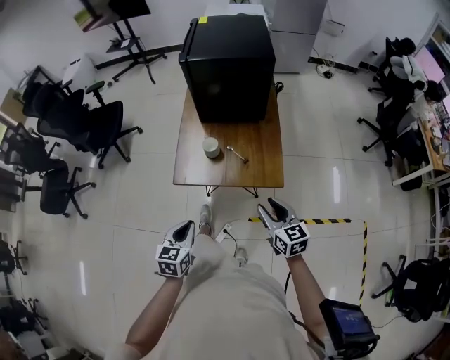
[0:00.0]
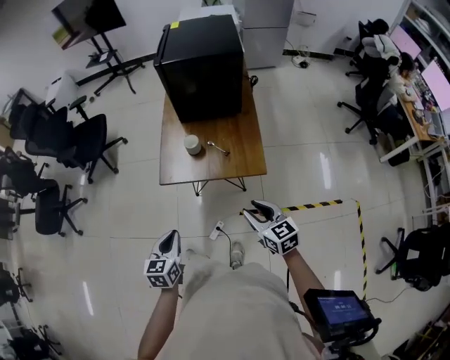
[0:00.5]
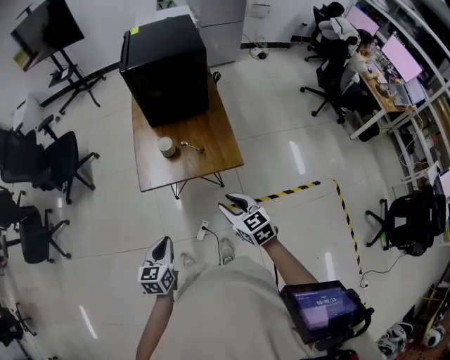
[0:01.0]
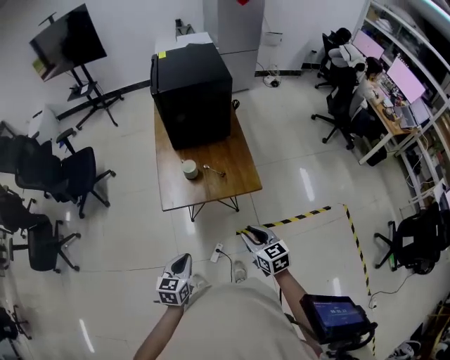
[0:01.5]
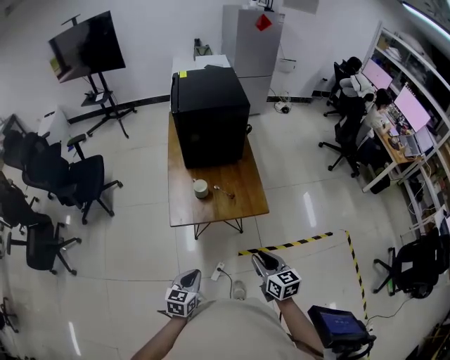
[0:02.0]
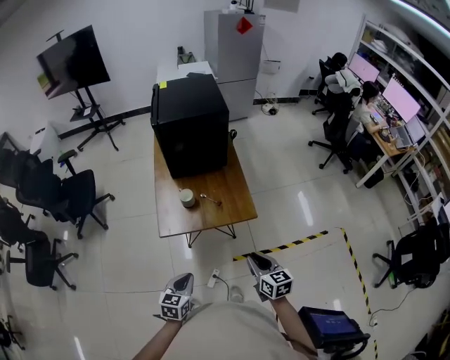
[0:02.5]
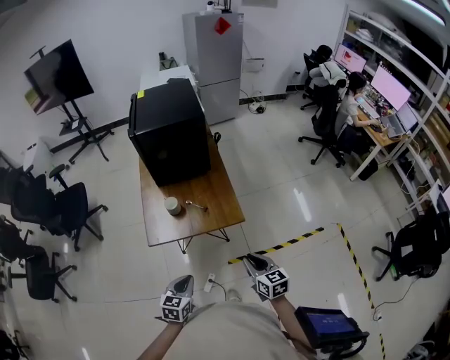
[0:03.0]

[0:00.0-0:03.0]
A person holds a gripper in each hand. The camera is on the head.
0:00.0 to 0:01.5: The left gripper is displaced backward by roughly 10 cm. Meanwhile the right gripper shifts roughly 15 cm backward and to the left.
0:01.5 to 0:03.0: The two grippers go approximately 10 cm to the right.

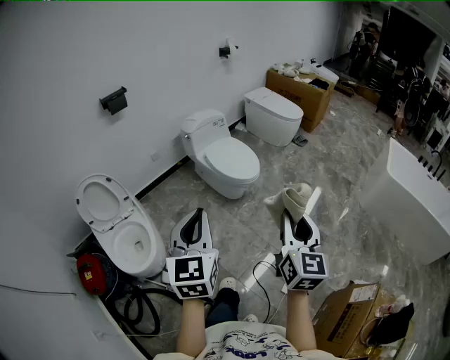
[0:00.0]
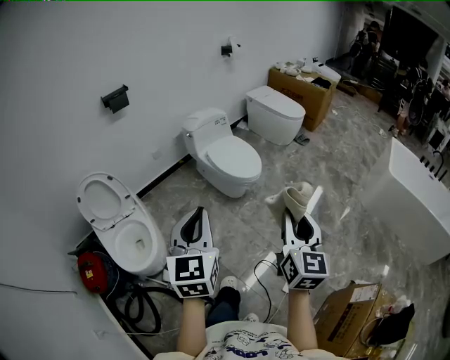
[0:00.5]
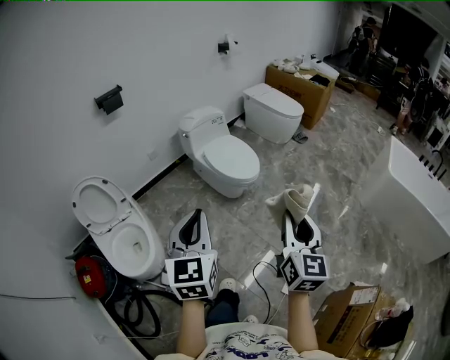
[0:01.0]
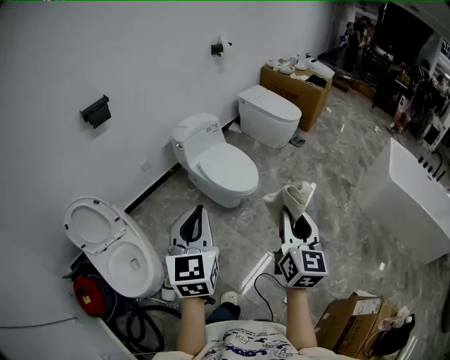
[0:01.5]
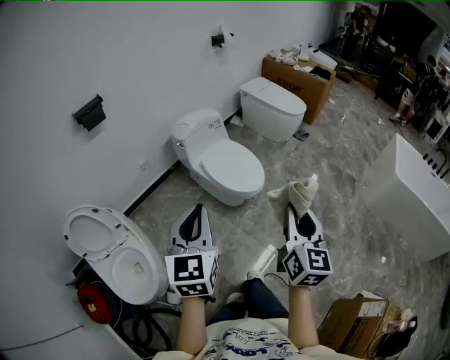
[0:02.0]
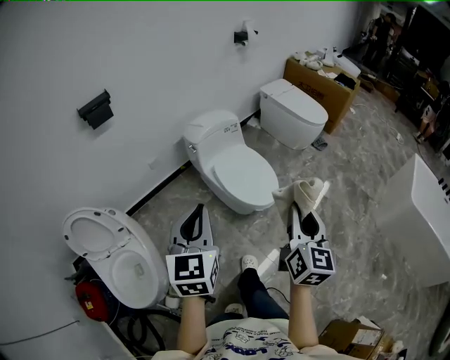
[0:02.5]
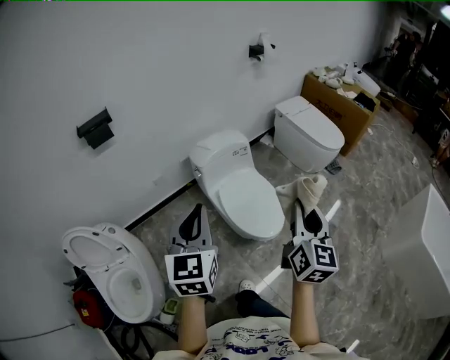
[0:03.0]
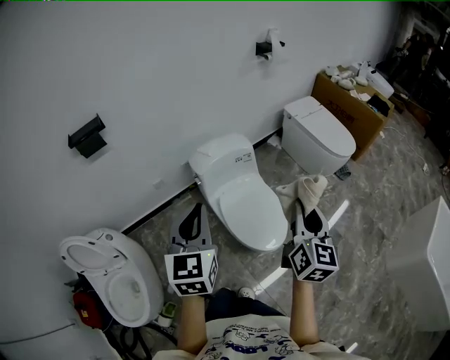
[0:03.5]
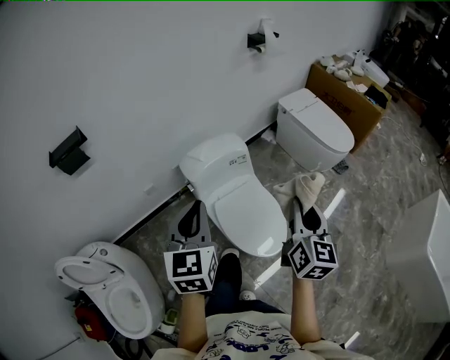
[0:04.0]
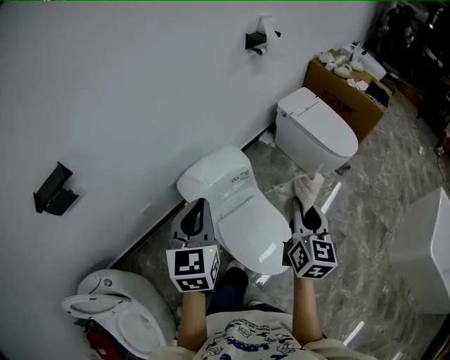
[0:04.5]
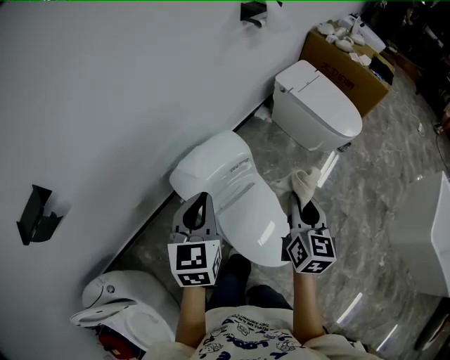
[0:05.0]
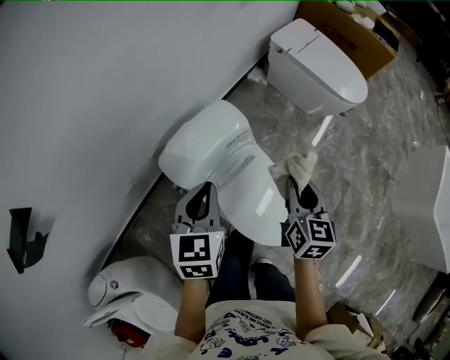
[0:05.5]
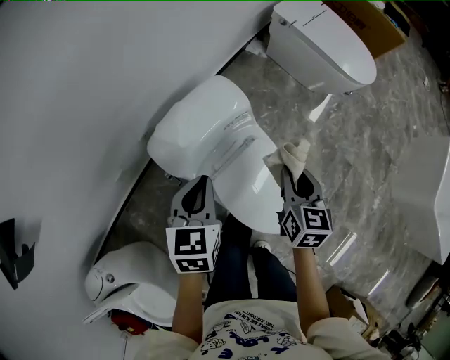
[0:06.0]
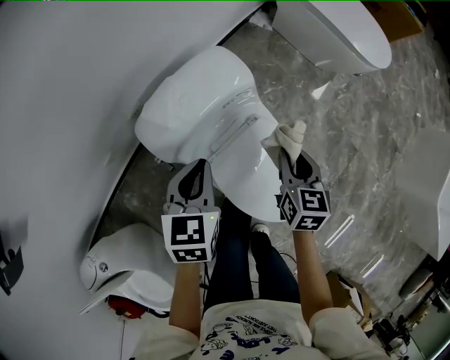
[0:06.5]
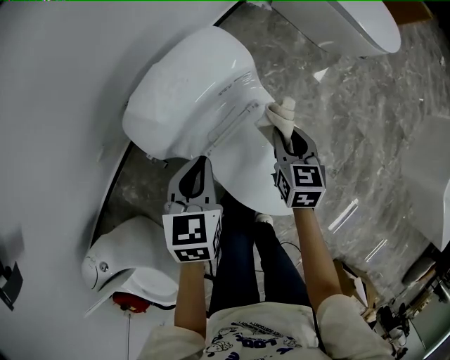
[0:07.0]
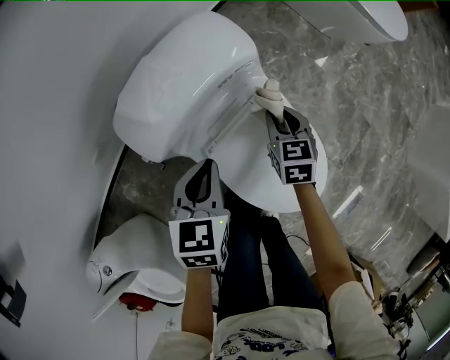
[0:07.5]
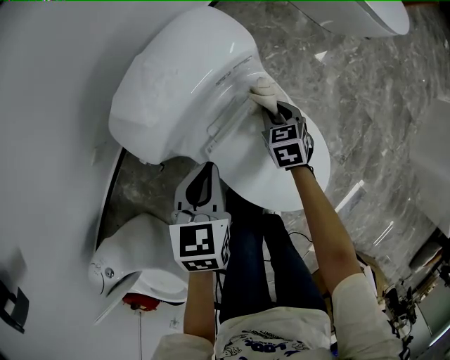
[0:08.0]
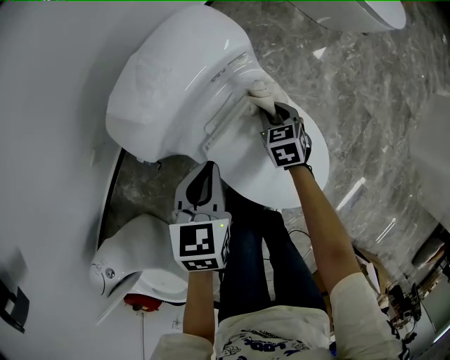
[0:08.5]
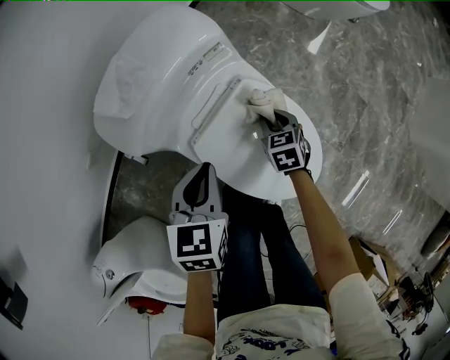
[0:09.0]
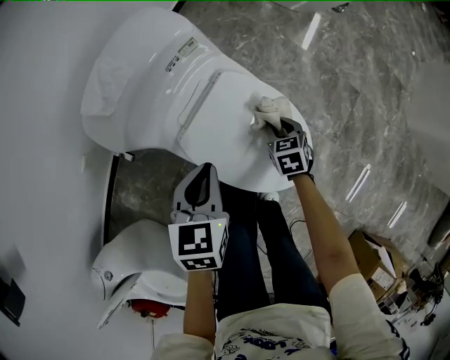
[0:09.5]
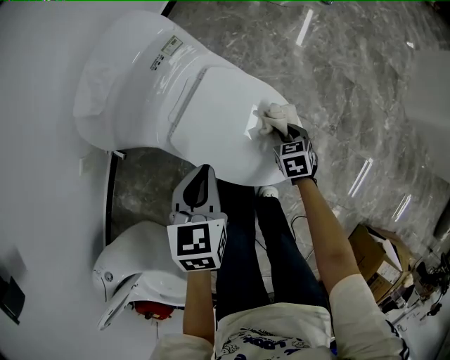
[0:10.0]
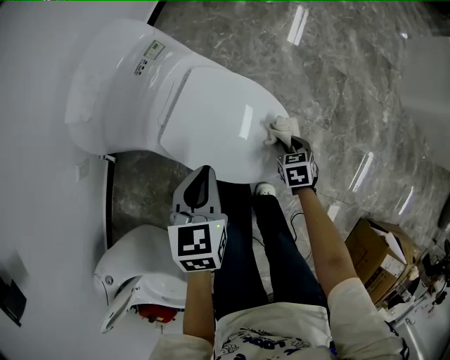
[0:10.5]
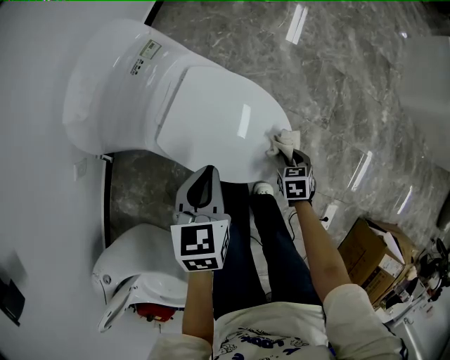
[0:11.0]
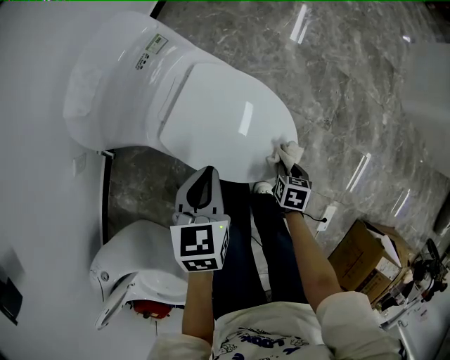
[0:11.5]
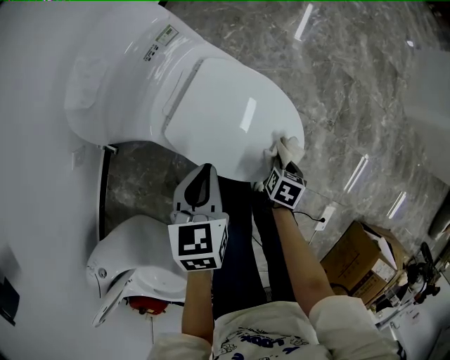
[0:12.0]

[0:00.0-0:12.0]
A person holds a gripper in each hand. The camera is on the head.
0:00.0 to 0:02.0: The two grippers go about 25 cm forward.
0:02.0 to 0:04.0: The two grippers travel together, forward, roughly 60 cm.
0:04.0 to 0:06.0: The right gripper shifts some 40 cm downward and forward, and swivels roughly 30 degrees. Meanwhile the left gripper travels forward and downward by about 40 cm, and changes its angle by approximately 30 degrees.
0:06.0 to 0:08.0: The right gripper shifts roughly 35 cm downward, and changes its angle by approximately 30 degrees, while the left gripper is displaced downward by some 20 cm.
0:08.0 to 0:10.0: The left gripper heads to the right and backward, covering roughly 15 cm. The right gripper travels backward and to the right by roughly 30 cm.
0:10.0 to 0:12.0: The right gripper changes place by some 15 cm, and changes its angle by roughly 40 degrees.

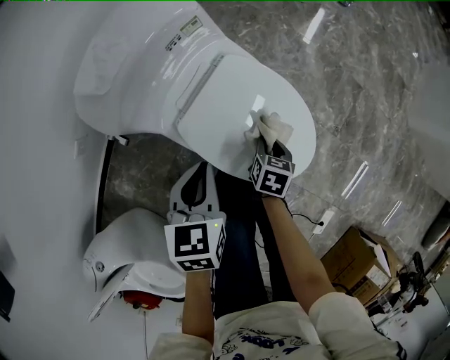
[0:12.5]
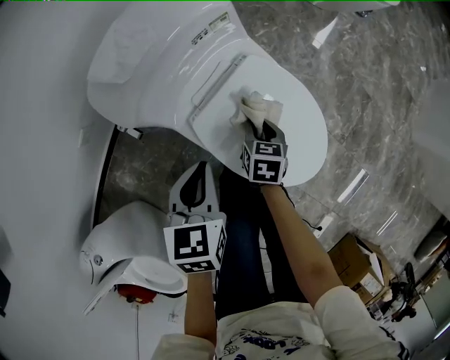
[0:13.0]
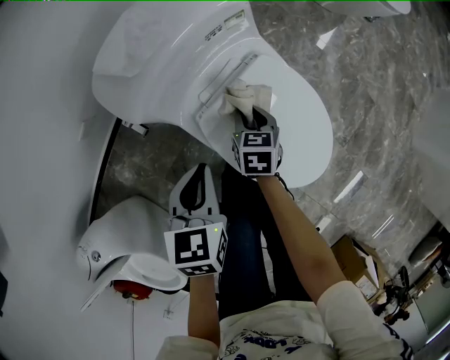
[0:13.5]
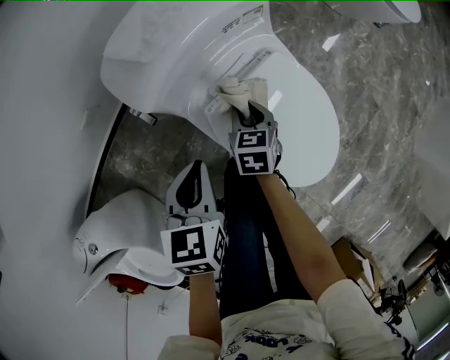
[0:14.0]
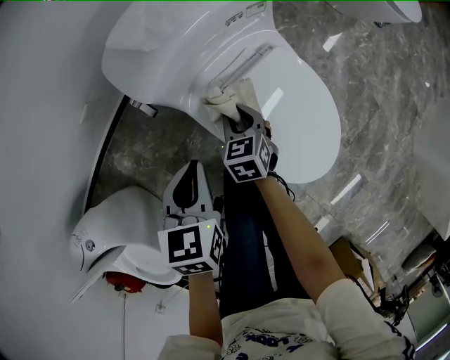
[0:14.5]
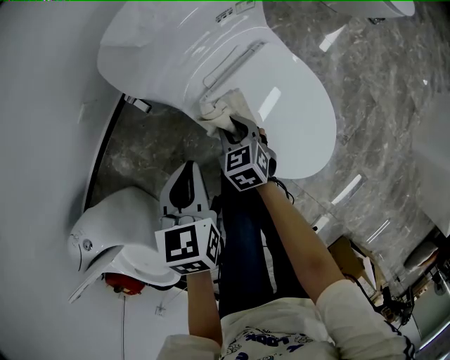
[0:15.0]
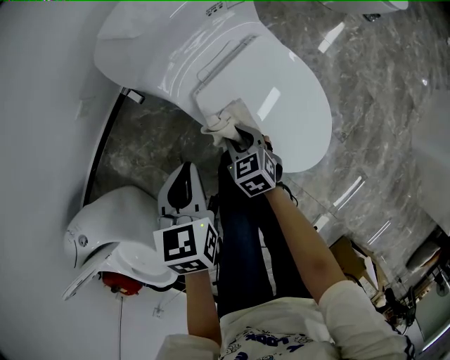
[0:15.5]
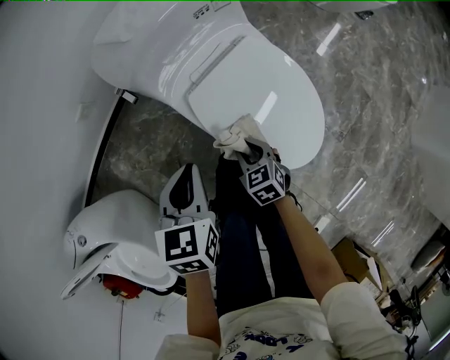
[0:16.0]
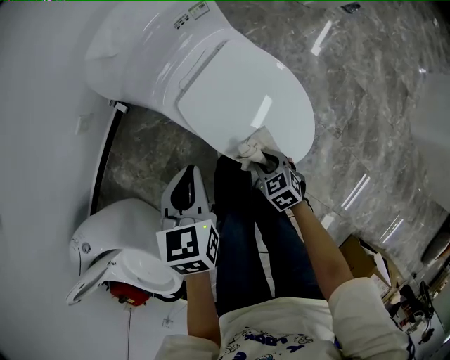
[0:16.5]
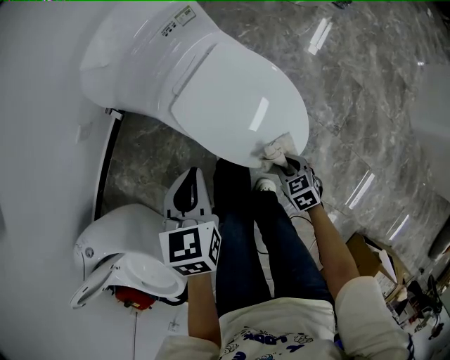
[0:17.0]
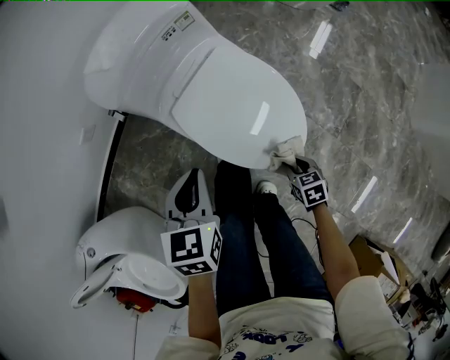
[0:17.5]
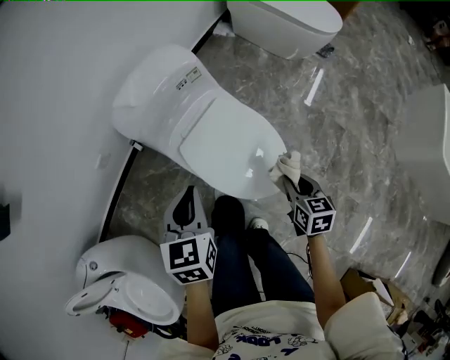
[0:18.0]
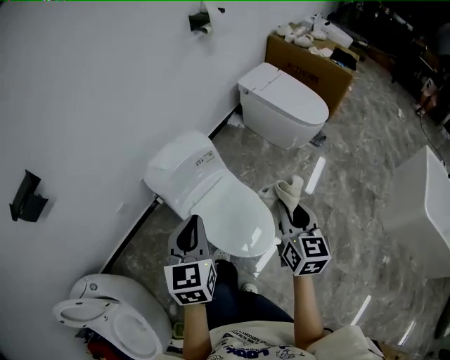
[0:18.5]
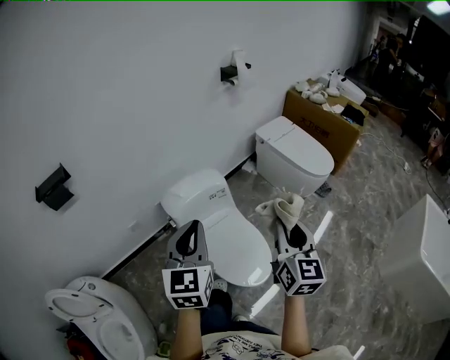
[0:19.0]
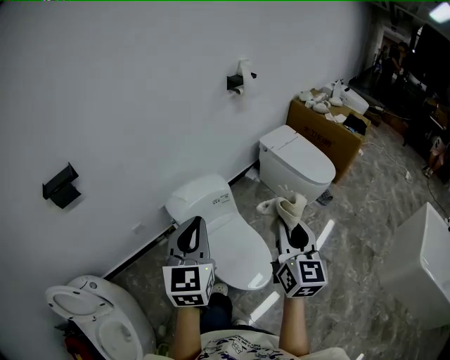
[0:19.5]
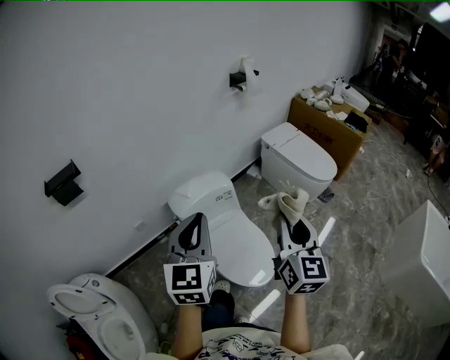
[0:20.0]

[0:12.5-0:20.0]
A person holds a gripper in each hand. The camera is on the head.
0:12.5 to 0:14.5: The left gripper ends up about 10 cm from where it was. Meanwhile the right gripper shifts by approximately 25 cm, and rolls counterclockwise, seen from behind, by roughly 40 degrees.
0:14.5 to 0:16.5: The right gripper is displaced backward and to the right by roughly 25 cm, while the left gripper moves backward and to the right, roughly 10 cm.
0:16.5 to 0:18.0: The left gripper travels upward by approximately 15 cm. The right gripper is displaced upward and to the right by some 25 cm, and rotates approximately 40 degrees.
0:18.0 to 0:20.0: The grippers both shift upward by about 50 cm. The right gripper angles its fingers upward, by about 50 degrees. Meanwhile the left gripper points its fingers approximately 30 degrees further upward.

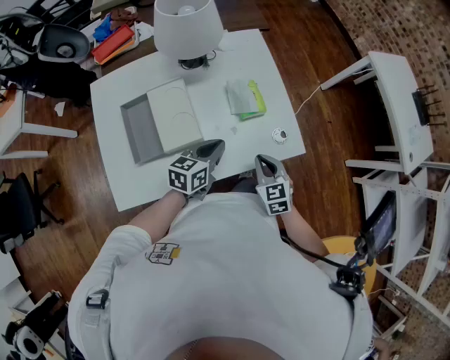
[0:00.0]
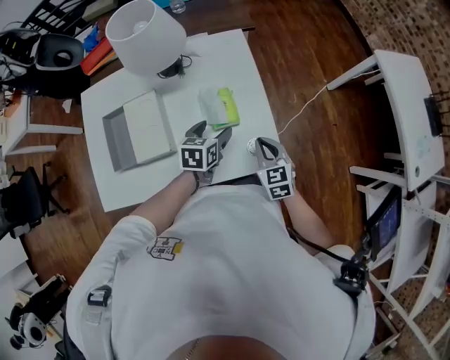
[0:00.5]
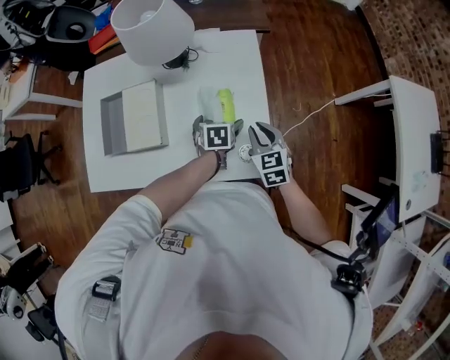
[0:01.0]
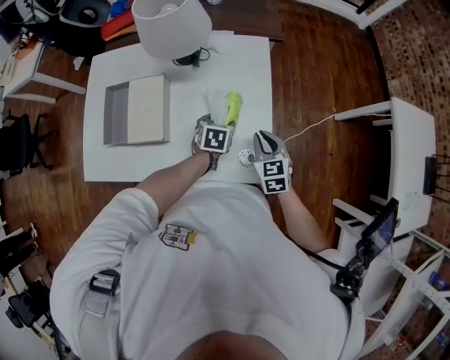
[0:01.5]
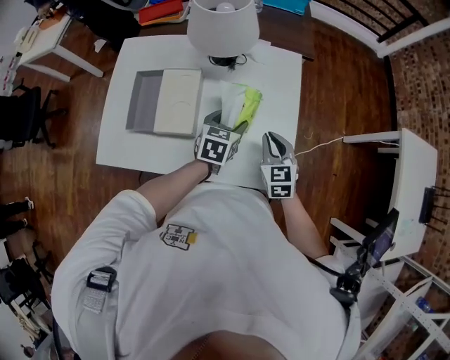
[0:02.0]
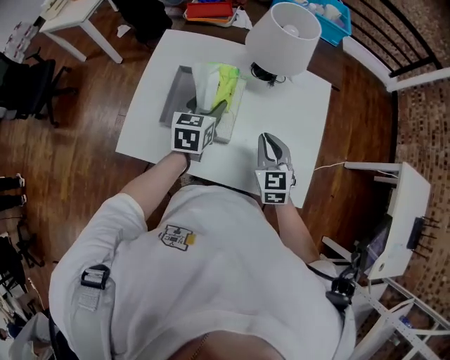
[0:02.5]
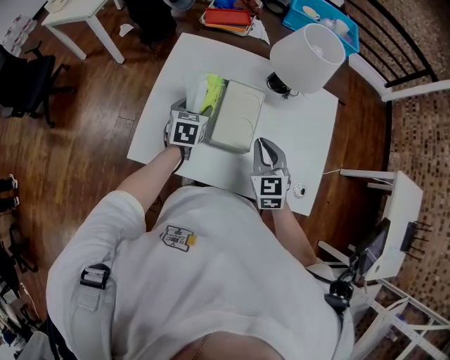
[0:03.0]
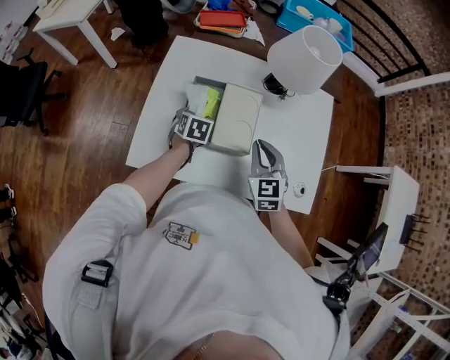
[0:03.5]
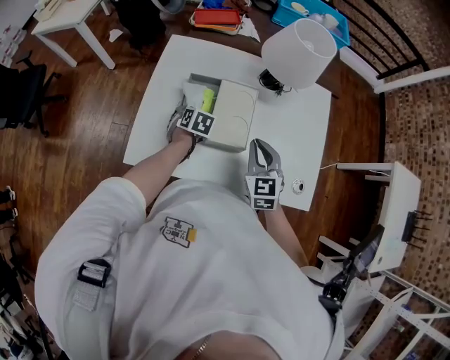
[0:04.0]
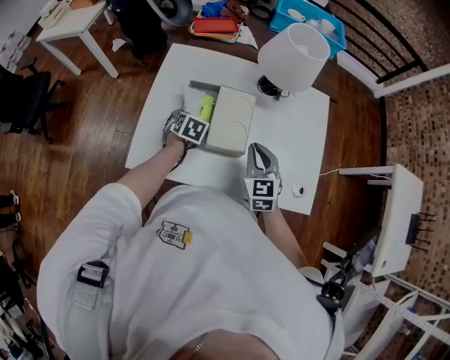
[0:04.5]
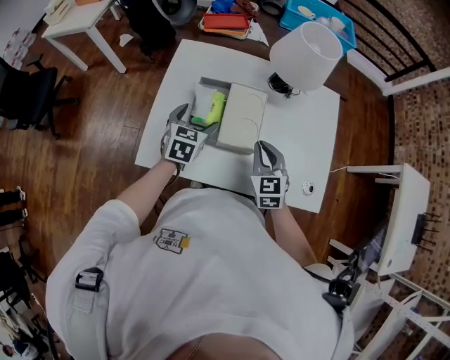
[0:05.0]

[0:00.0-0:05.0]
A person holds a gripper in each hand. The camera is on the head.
0:00.0 to 0:02.5: The right gripper ends up about 20 cm from where it was, and rotates roughly 30 degrees; the left gripper moves some 20 cm, rotates roughly 50 degrees, and opens its fingers.
0:02.5 to 0:05.0: Both grippers move to the left, approximately 10 cm. The left gripper travels downward and back again, approximately 15 cm each way.
